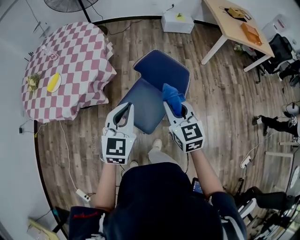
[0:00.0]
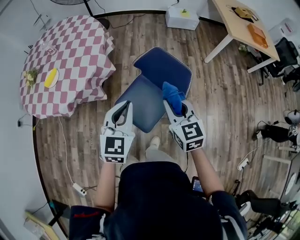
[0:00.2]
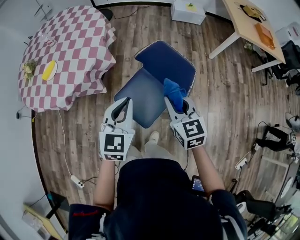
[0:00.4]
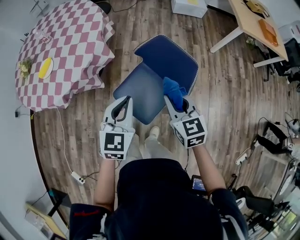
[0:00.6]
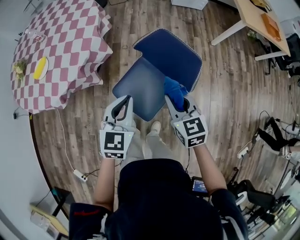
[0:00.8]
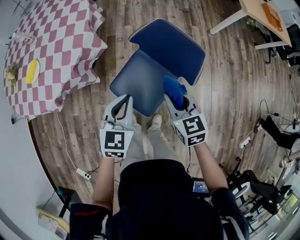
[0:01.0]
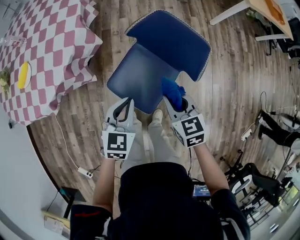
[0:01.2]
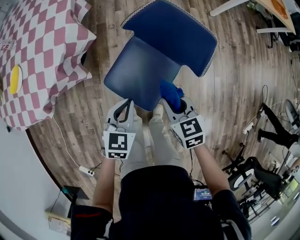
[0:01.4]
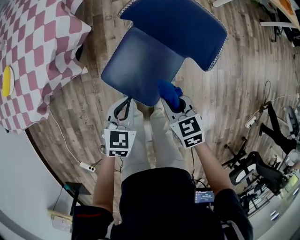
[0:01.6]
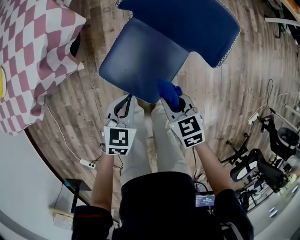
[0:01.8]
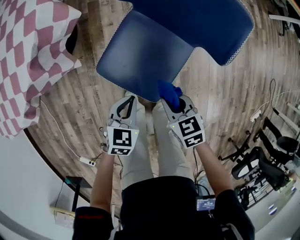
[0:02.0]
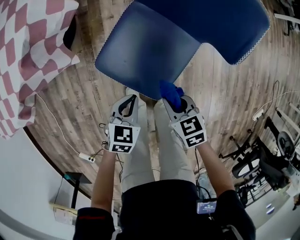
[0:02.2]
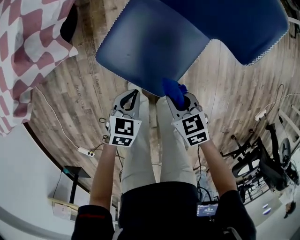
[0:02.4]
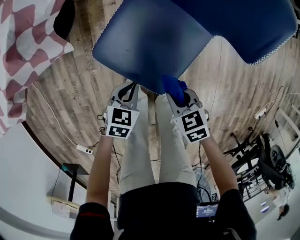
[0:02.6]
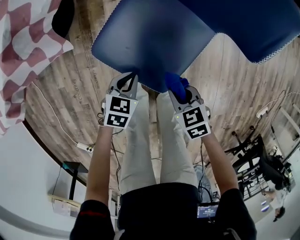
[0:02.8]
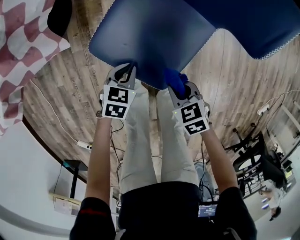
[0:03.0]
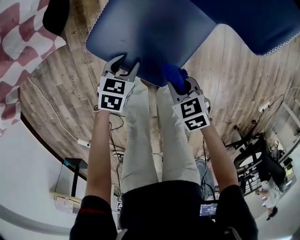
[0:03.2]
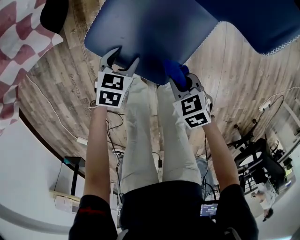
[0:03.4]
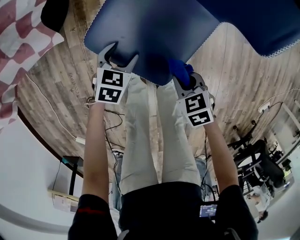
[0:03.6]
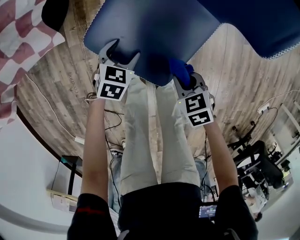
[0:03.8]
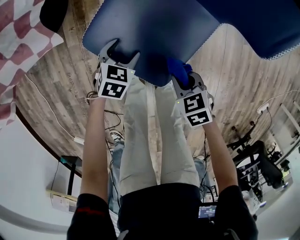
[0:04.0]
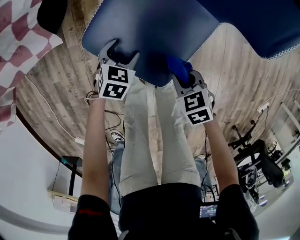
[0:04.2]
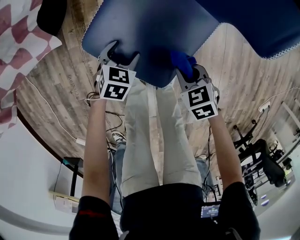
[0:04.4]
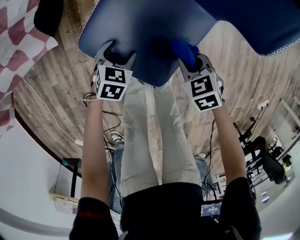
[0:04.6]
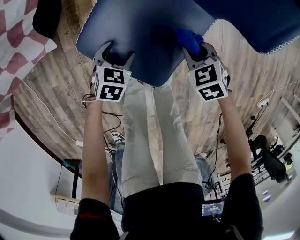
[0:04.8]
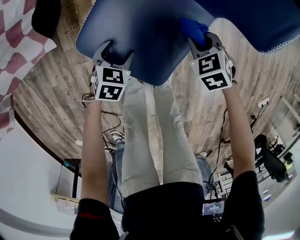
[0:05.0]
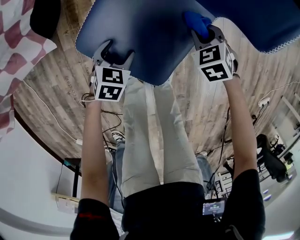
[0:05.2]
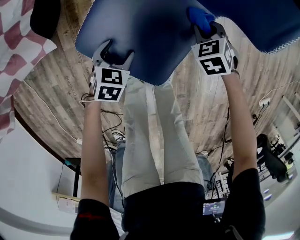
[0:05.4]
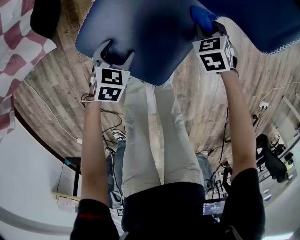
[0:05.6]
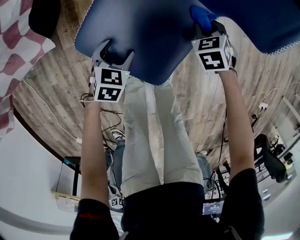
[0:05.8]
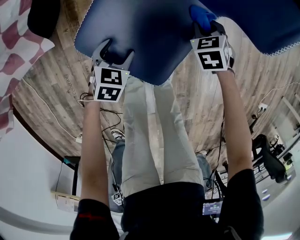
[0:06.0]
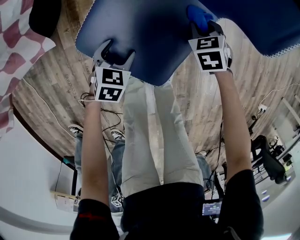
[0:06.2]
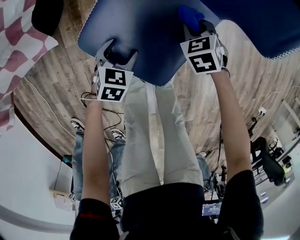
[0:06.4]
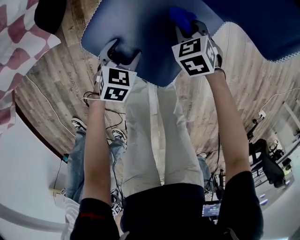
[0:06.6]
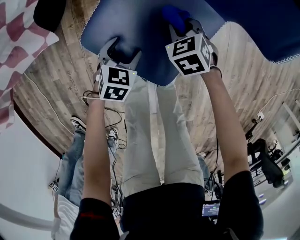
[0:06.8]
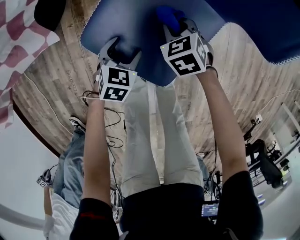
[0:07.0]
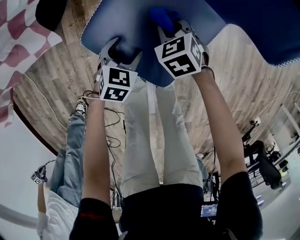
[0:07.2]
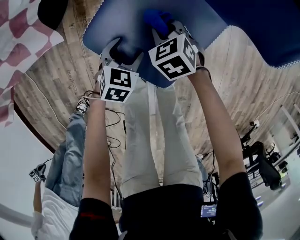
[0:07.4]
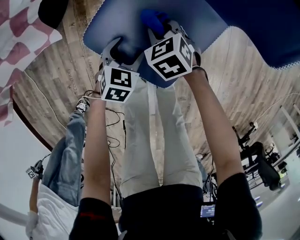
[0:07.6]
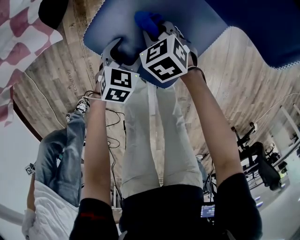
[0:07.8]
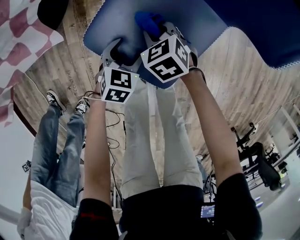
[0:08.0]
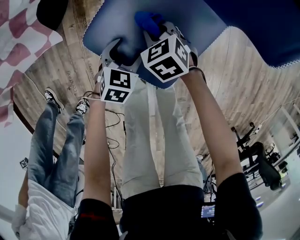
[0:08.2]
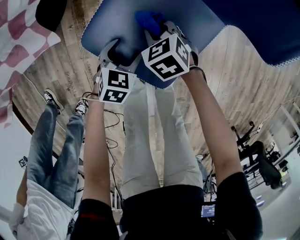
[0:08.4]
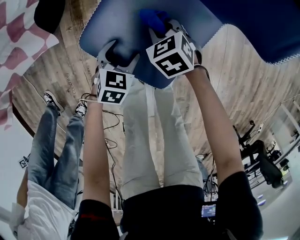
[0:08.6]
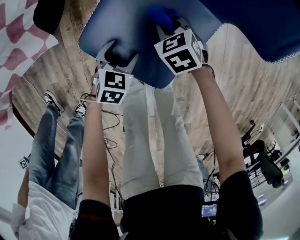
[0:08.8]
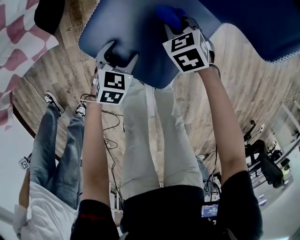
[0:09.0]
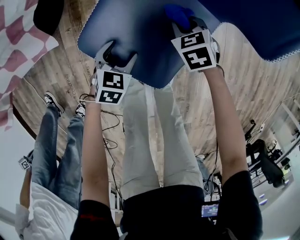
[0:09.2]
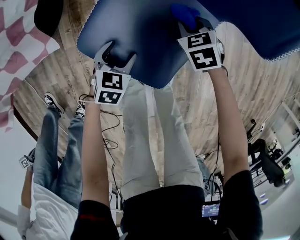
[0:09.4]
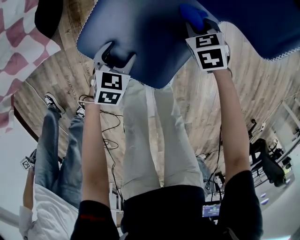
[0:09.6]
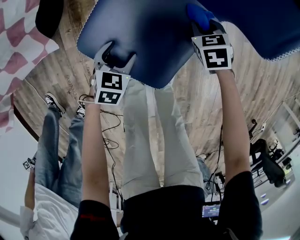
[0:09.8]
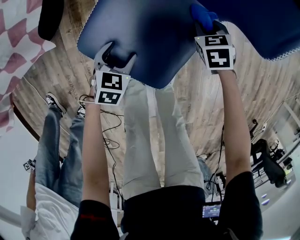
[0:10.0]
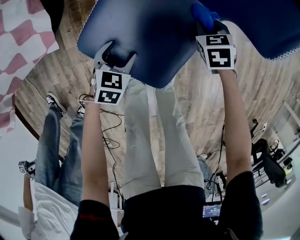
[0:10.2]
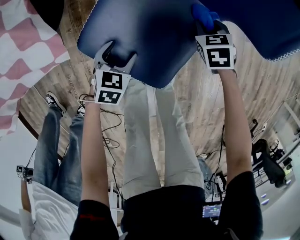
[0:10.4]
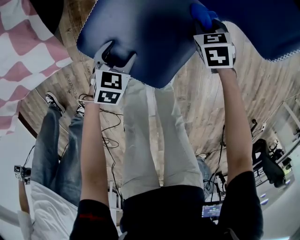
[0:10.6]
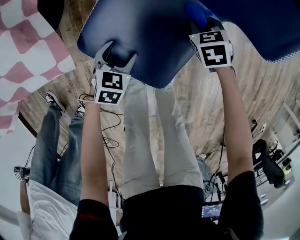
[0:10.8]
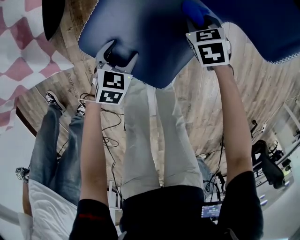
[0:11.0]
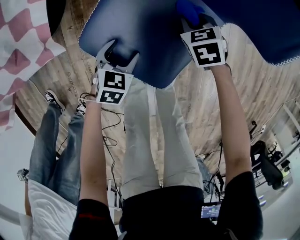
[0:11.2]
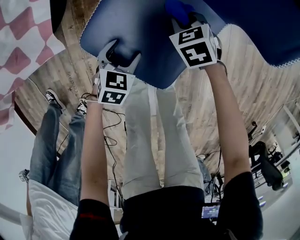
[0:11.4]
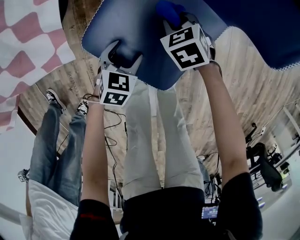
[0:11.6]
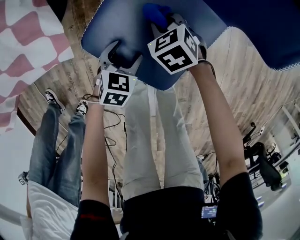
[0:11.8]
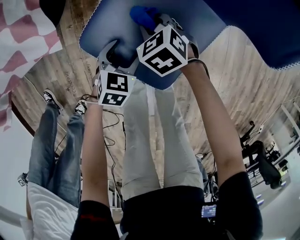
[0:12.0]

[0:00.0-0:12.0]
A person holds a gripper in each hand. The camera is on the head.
0.0 to 1.6 s: The grippers both shift downward by approximately 35 cm. The right gripper swivels roughly 30 degrees. Meanwhile the left gripper turns by about 30 degrees.
1.6 to 3.0 s: Both grippers move downward, about 25 cm.
3.0 to 4.4 s: The right gripper shifts by approximately 5 cm. The left gripper changes place by roughly 5 cm, and opens.
4.4 to 6.0 s: The right gripper shifts about 15 cm forward, and rotates roughly 20 degrees.
6.0 to 7.6 s: The right gripper shifts roughly 20 cm to the left, and rotates approximately 20 degrees.
7.6 to 9.0 s: The right gripper travels to the right by approximately 5 cm.
9.0 to 10.4 s: The right gripper heads to the right, covering some 10 cm.
10.4 to 12.0 s: The right gripper heads to the left, covering about 20 cm, and turns by roughly 30 degrees.

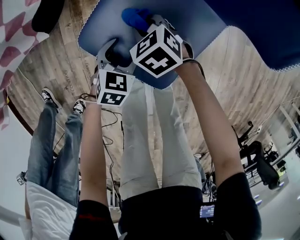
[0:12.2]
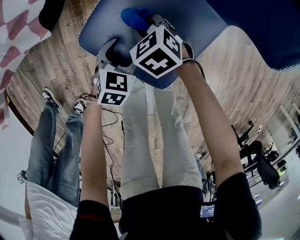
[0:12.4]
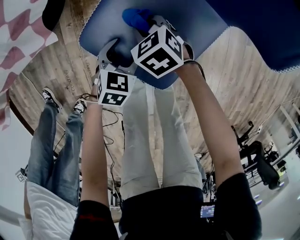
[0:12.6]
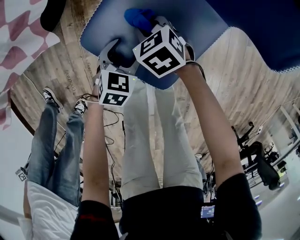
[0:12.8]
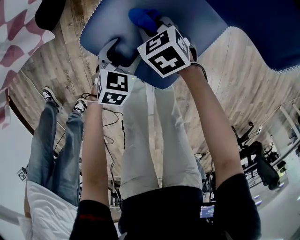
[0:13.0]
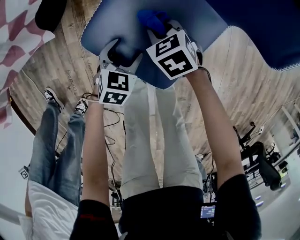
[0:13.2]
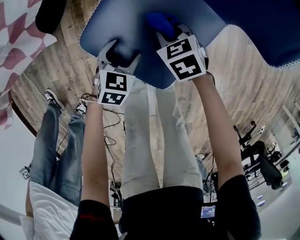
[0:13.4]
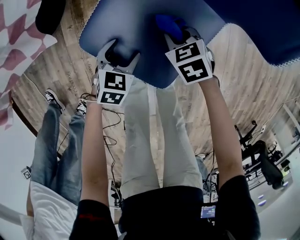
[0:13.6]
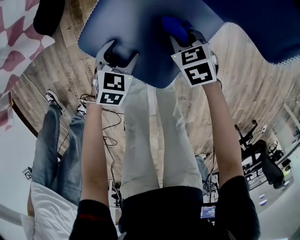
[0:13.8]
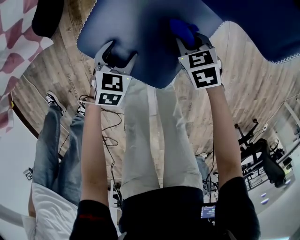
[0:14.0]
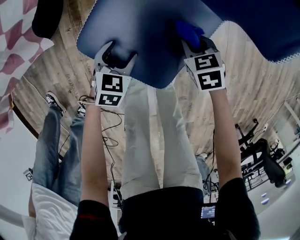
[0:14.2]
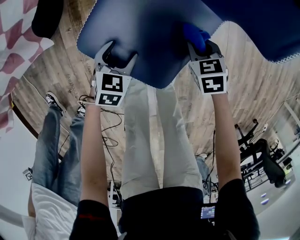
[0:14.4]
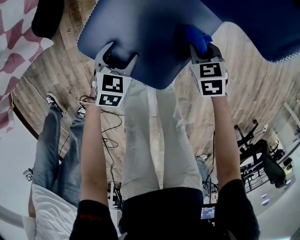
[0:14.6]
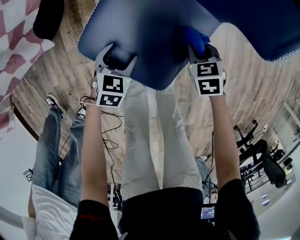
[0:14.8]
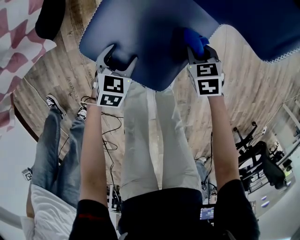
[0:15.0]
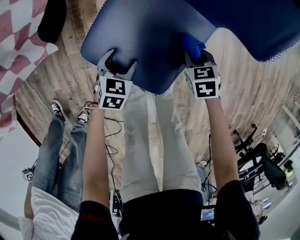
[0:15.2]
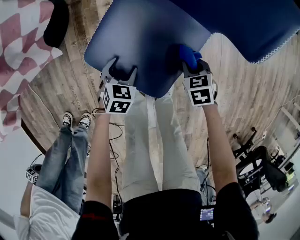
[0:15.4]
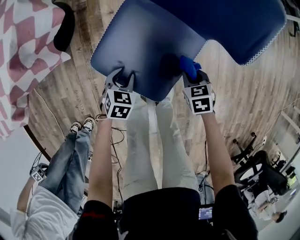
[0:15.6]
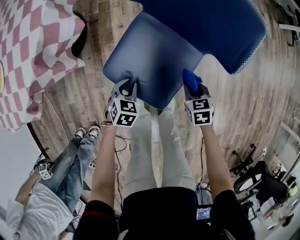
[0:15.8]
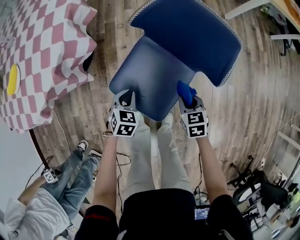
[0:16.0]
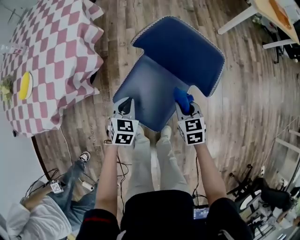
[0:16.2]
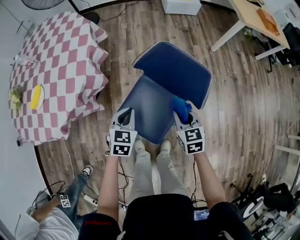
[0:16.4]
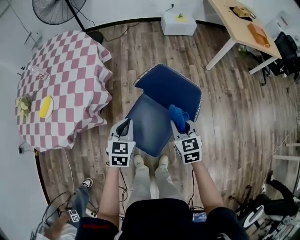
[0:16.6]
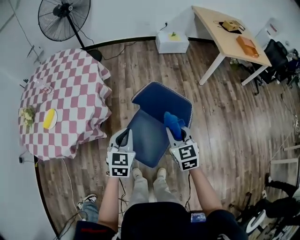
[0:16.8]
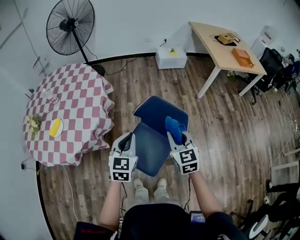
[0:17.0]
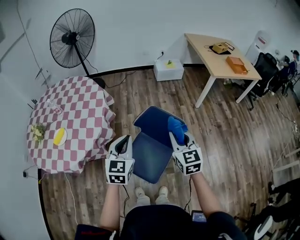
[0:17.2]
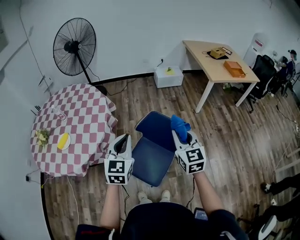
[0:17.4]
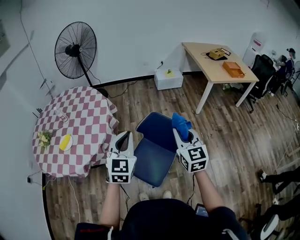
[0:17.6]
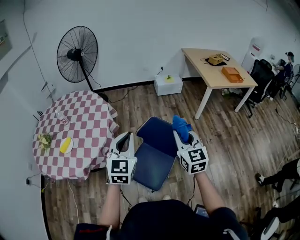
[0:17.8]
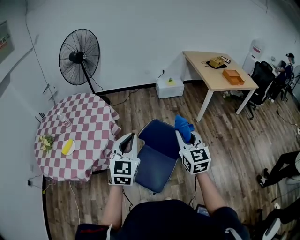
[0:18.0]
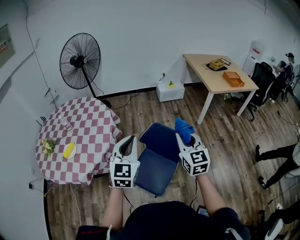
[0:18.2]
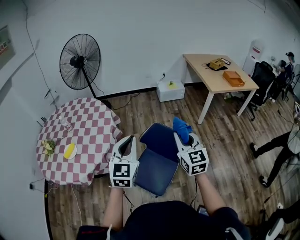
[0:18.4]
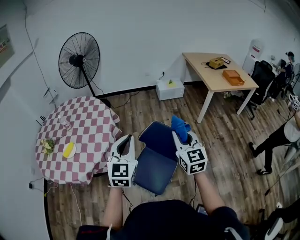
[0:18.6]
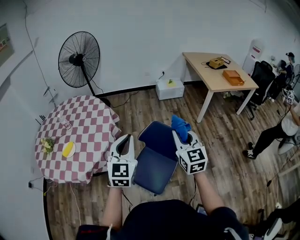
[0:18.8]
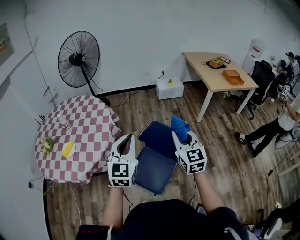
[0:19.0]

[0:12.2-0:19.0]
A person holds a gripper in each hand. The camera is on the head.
12.2 to 13.6 s: The right gripper is displaced to the right by roughly 10 cm.
13.6 to 15.0 s: The right gripper moves to the right, about 10 cm.
15.0 to 16.2 s: Both grippers move upward, roughly 25 cm. The left gripper closes.
16.2 to 17.6 s: The grippers both shift upward by roughly 50 cm. The left gripper tilts its fingers some 40 degrees upward. Meanwhile the right gripper tilts its fingers some 40 degrees upward.
17.6 to 19.0 s: The grippers stay close to where they were, moving slightly.

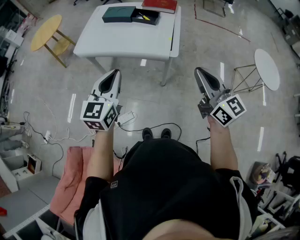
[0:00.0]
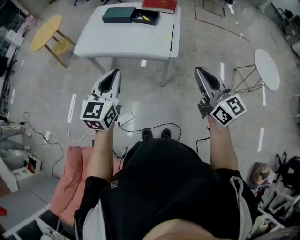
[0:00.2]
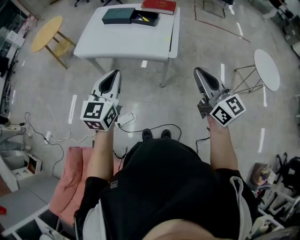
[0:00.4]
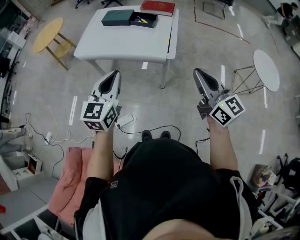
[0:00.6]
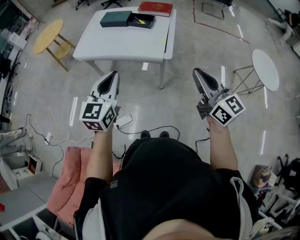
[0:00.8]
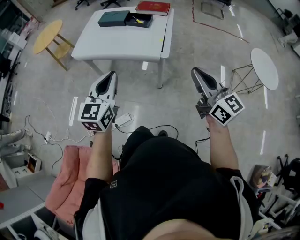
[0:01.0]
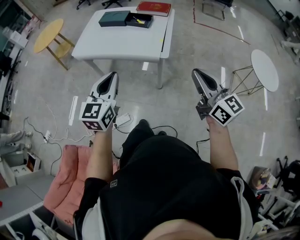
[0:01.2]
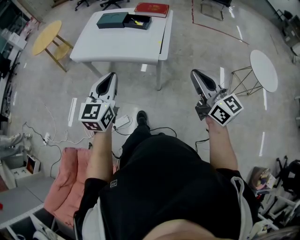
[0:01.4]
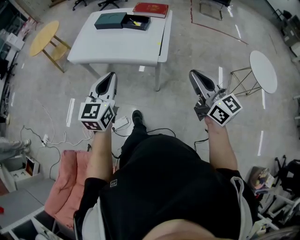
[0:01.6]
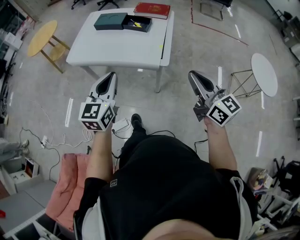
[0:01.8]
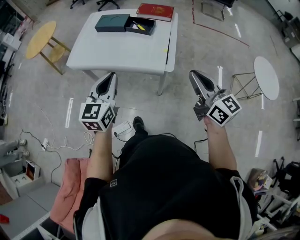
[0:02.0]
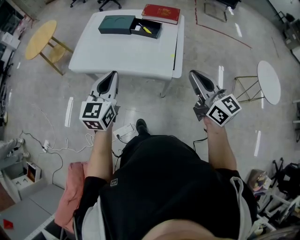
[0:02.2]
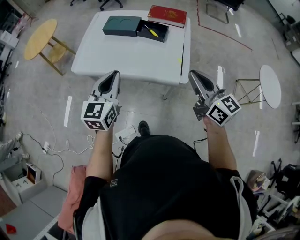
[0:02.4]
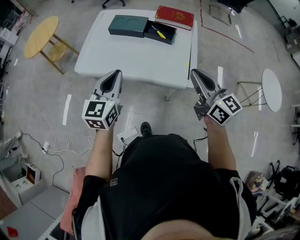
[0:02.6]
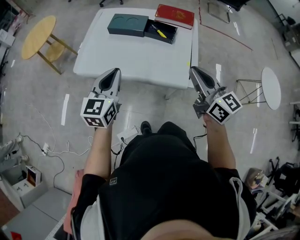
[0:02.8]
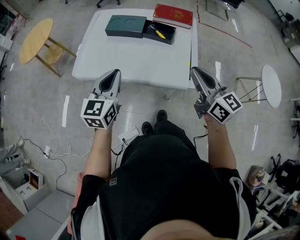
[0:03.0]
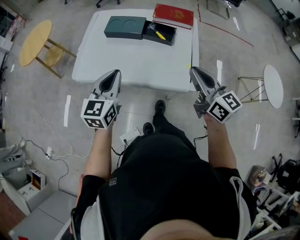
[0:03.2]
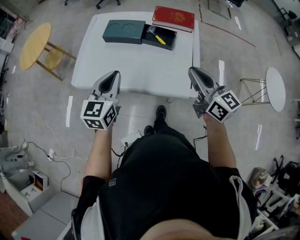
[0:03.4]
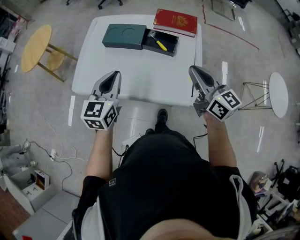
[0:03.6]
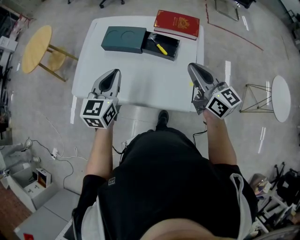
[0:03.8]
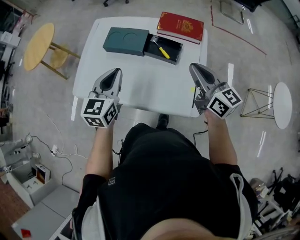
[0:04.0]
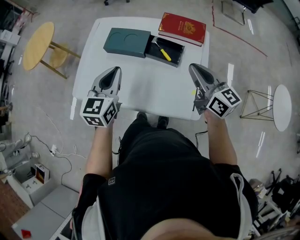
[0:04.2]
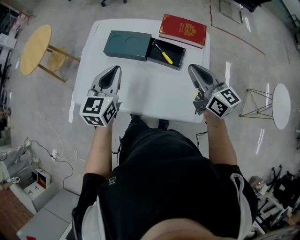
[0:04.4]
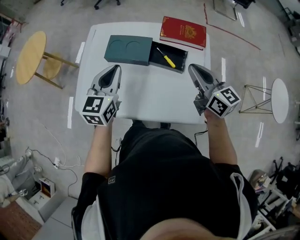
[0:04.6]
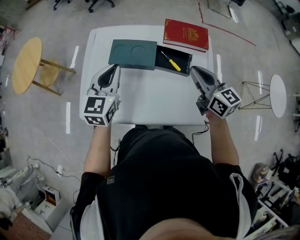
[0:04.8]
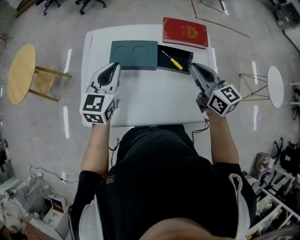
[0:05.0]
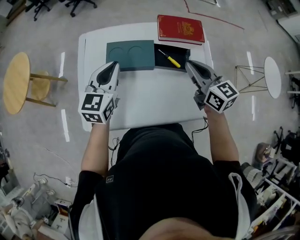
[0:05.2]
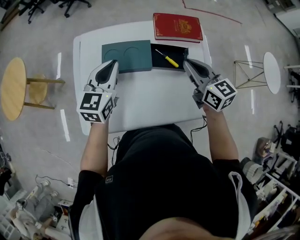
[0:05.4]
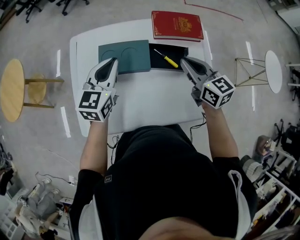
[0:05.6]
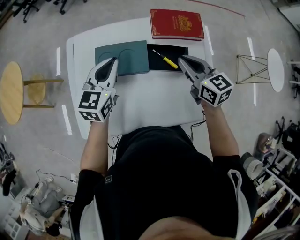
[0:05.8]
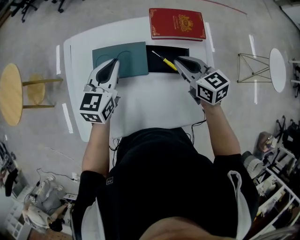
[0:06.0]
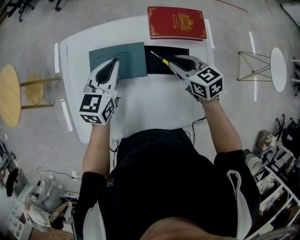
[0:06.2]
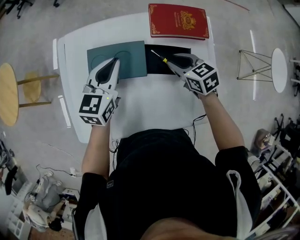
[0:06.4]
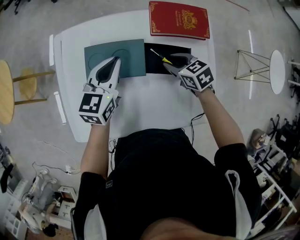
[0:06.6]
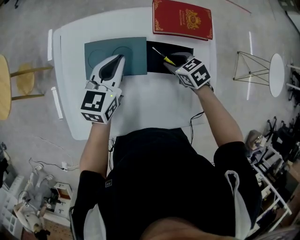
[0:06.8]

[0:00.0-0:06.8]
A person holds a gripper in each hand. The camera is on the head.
0.0 to 1.4 s: The two grippers go some 5 cm to the right.
1.4 to 2.8 s: The two grippers go some 30 cm forward and to the left.
2.8 to 4.0 s: Both grippers move forward, some 20 cm.
4.0 to 5.4 s: Both grippers travel together forward and to the left, approximately 20 cm. The right gripper turns by about 20 degrees.
5.4 to 6.8 s: The left gripper heads downward, to the right and forward, covering roughly 15 cm. Meanwhile the right gripper travels downward and forward by roughly 25 cm, tilts its fingers roughly 40 degrees downward, and opens.
